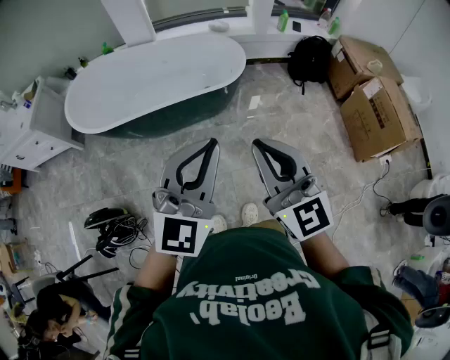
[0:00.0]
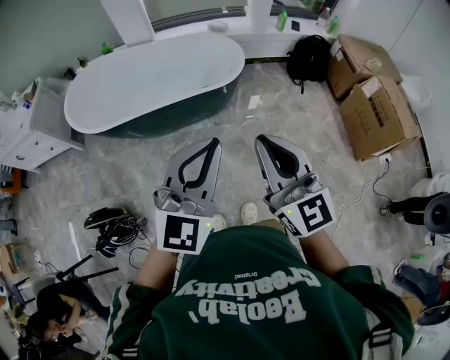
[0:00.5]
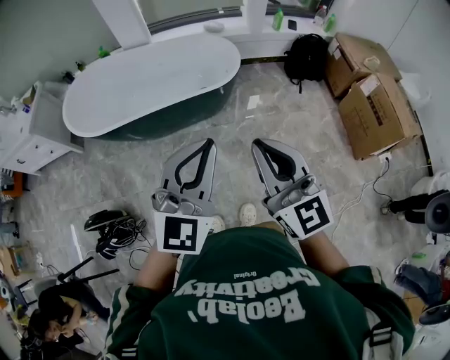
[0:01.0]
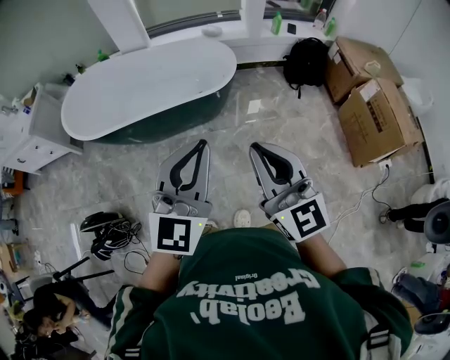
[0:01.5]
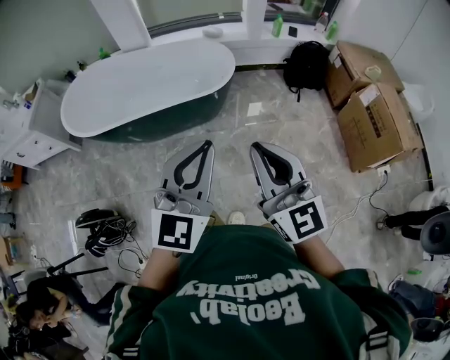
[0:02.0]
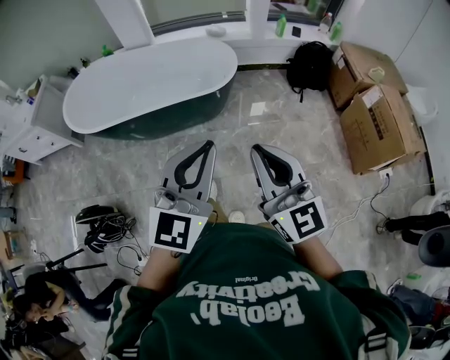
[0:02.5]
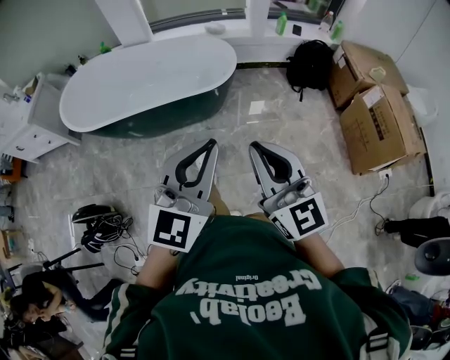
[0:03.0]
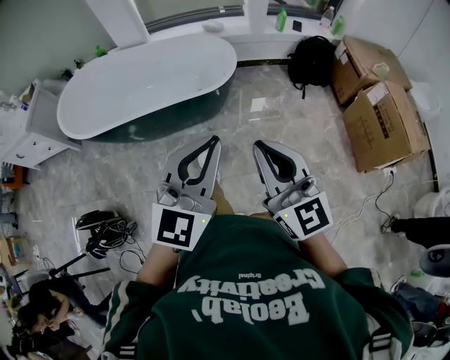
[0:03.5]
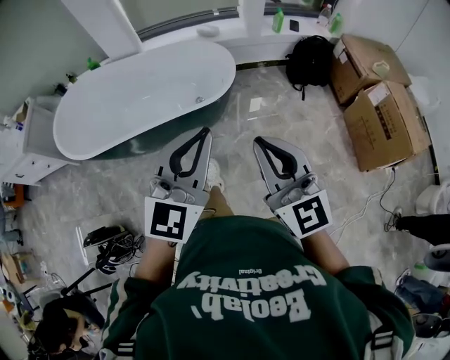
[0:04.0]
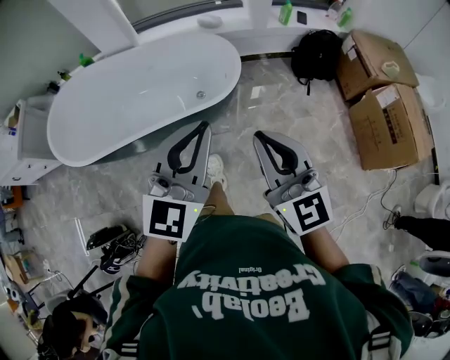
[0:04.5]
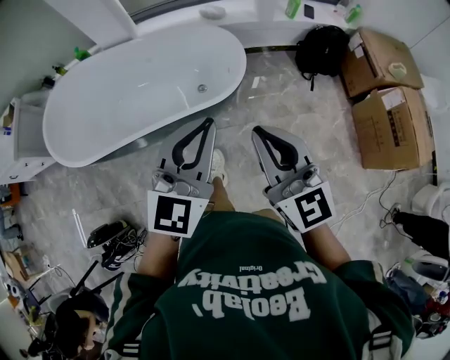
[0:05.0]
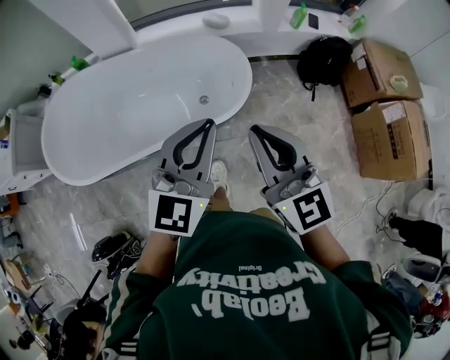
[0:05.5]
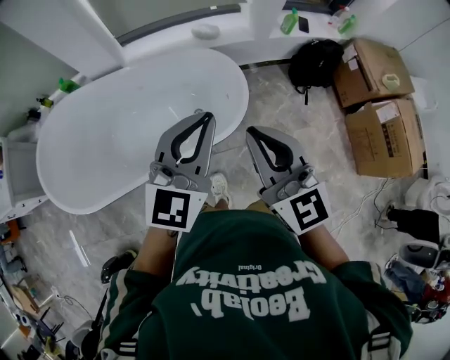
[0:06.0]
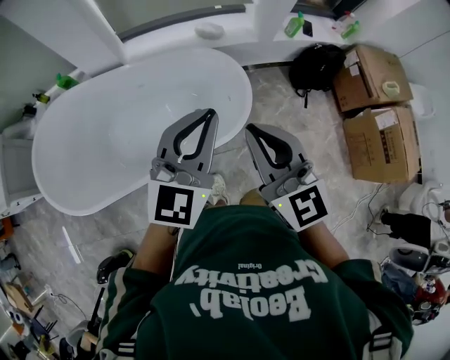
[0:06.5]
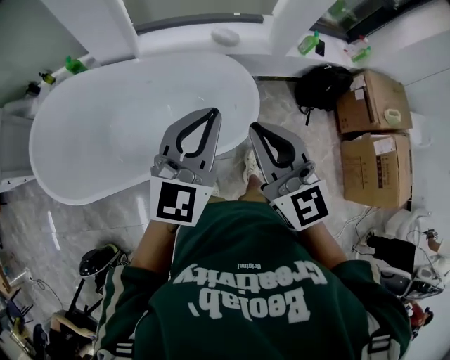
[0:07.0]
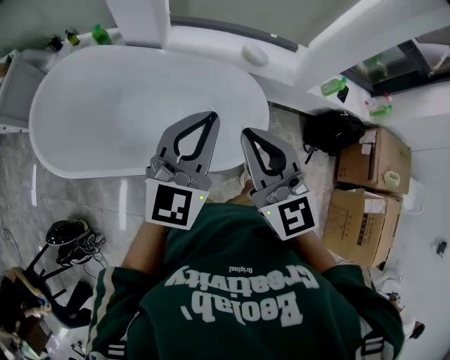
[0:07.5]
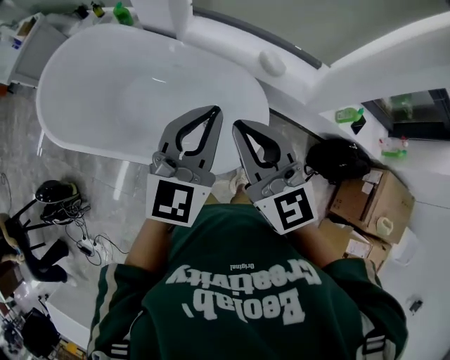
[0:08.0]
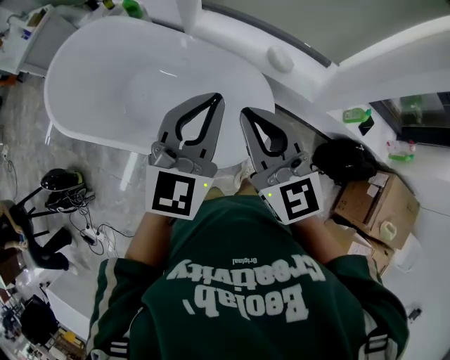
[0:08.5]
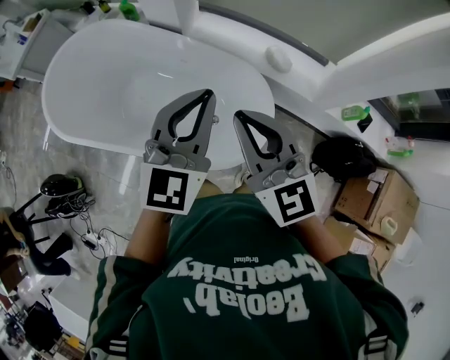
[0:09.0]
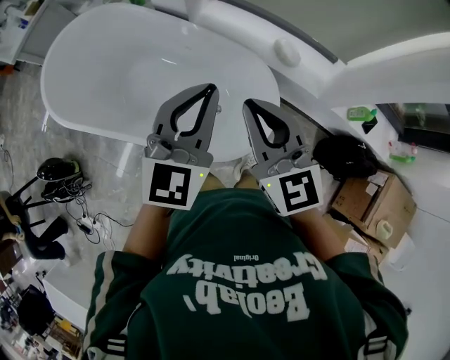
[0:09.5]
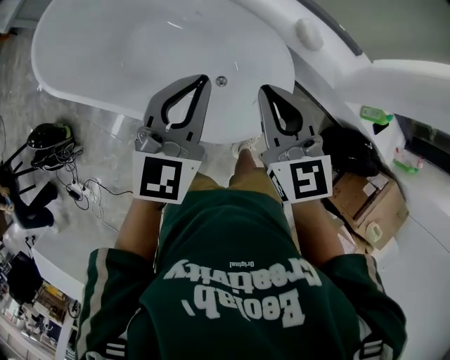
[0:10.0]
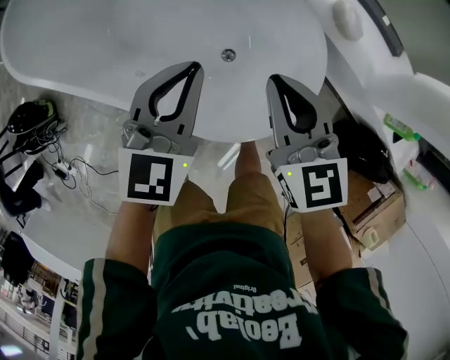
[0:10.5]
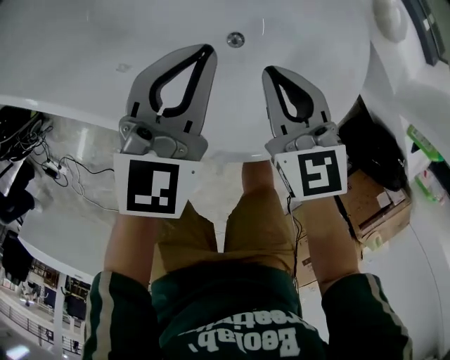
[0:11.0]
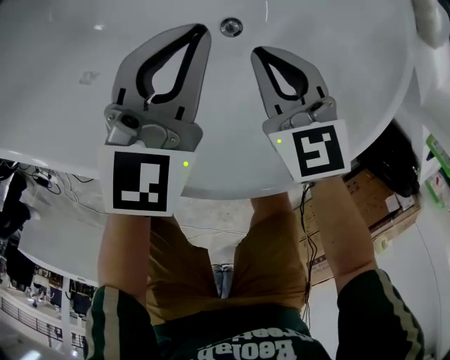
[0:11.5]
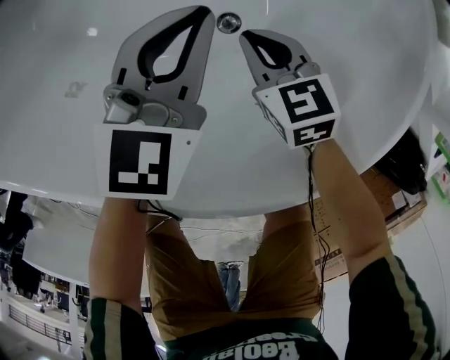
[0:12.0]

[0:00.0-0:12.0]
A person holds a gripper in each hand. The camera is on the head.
0:00.0 to 0:02.0: The grippers both shift to the right by about 10 cm.
0:02.0 to 0:04.0: The two grippers go roughly 15 cm forward.
0:04.0 to 0:06.0: The two grippers go roughly 35 cm forward.
0:06.0 to 0:08.0: The right gripper moves about 20 cm, and turns by approximately 40 degrees. The left gripper ends up some 20 cm from where it was, and changes its angle by approximately 40 degrees.
0:08.0 to 0:10.0: The right gripper moves downward and forward, about 15 cm. Meanwhile the left gripper shifts about 10 cm downward and to the left.
0:10.0 to 0:12.0: Both grippers move downward, approximately 50 cm. The right gripper rotates some 30 degrees.

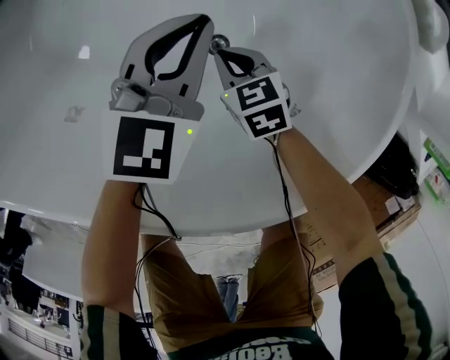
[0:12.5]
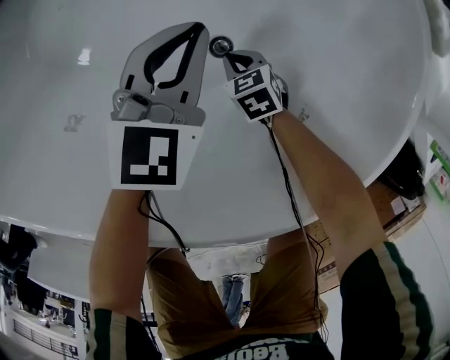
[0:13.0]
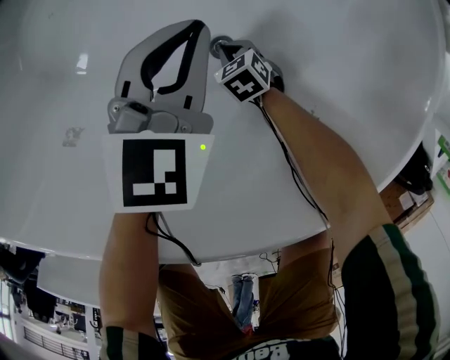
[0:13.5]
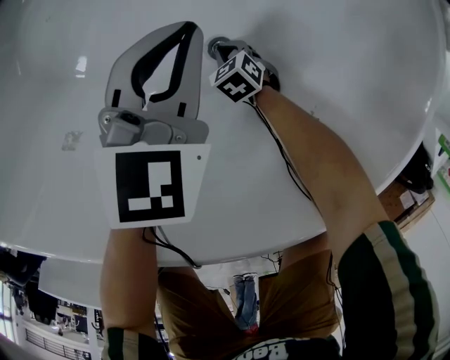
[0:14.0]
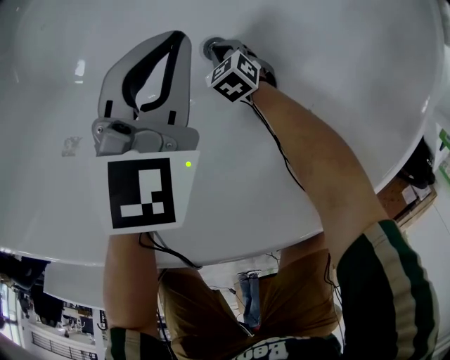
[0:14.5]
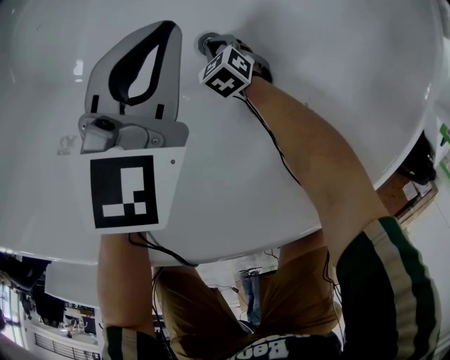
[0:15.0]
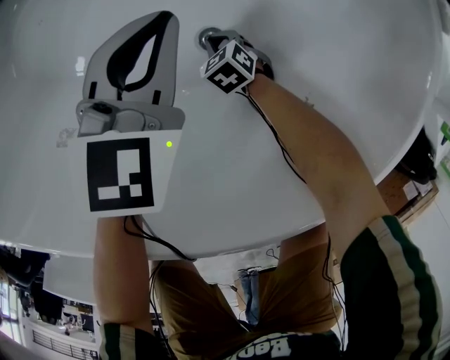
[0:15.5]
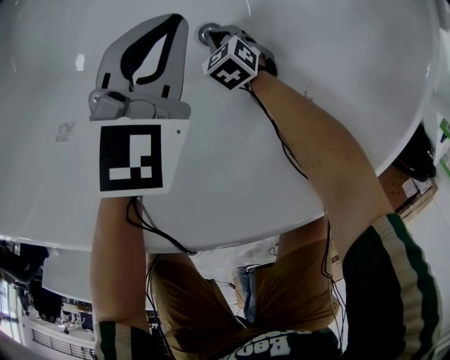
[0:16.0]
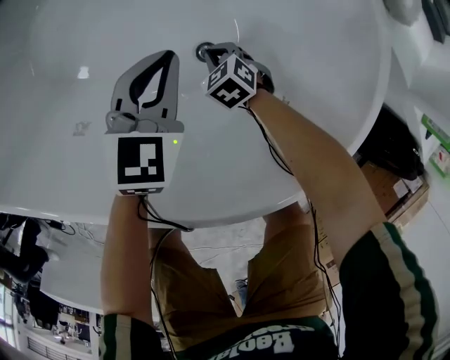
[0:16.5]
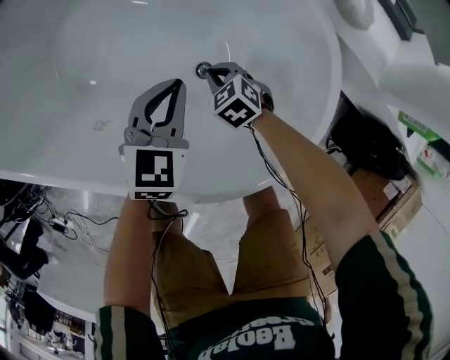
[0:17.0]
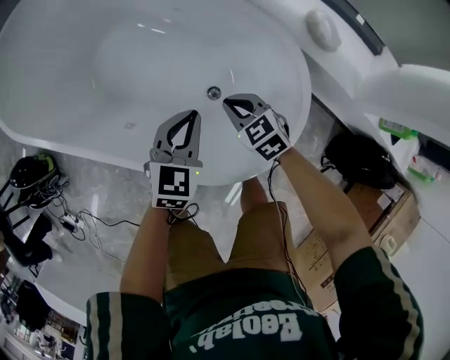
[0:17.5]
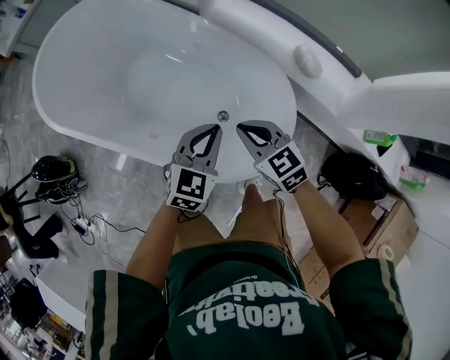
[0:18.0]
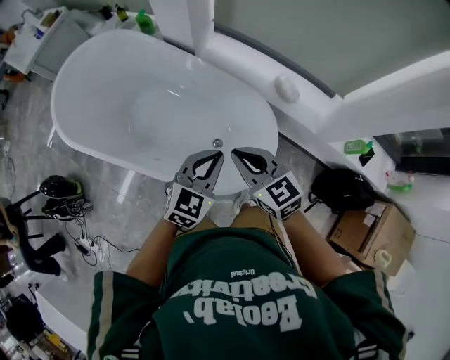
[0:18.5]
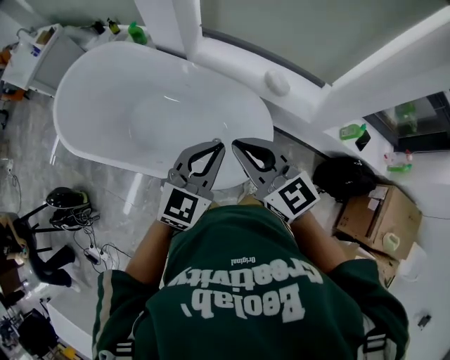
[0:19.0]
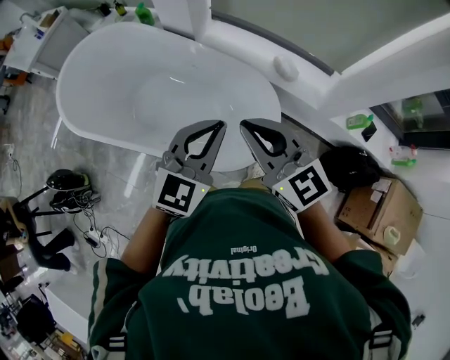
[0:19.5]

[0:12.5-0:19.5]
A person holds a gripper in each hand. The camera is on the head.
0:12.5 to 0:14.5: The right gripper goes approximately 20 cm downward.
0:14.5 to 0:16.0: The grippers move only a little.
0:16.0 to 0:17.5: The left gripper shifts approximately 25 cm upward. The right gripper moves upward, roughly 40 cm, and turns by roughly 20 degrees.
0:17.5 to 0:19.5: Both grippers travel together upward, approximately 40 cm. The left gripper changes its angle by roughly 30 degrees. Meanwhile the right gripper tips its fingers upward by about 40 degrees.

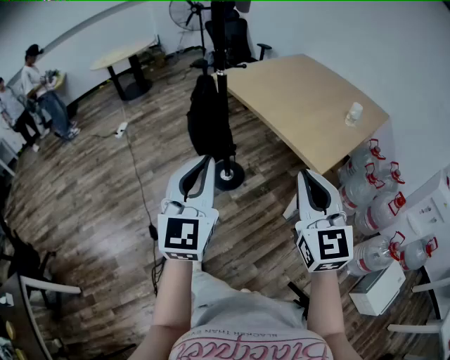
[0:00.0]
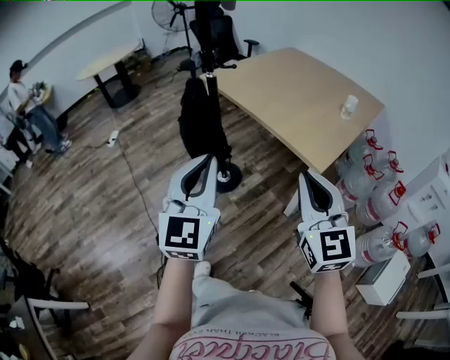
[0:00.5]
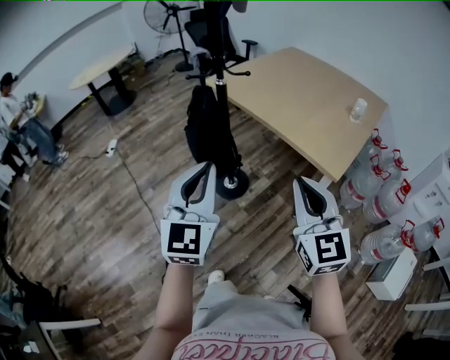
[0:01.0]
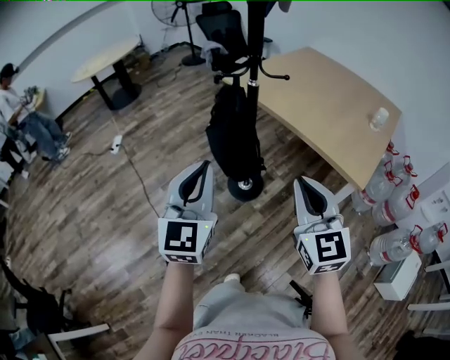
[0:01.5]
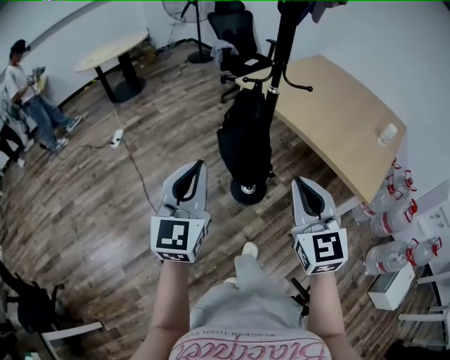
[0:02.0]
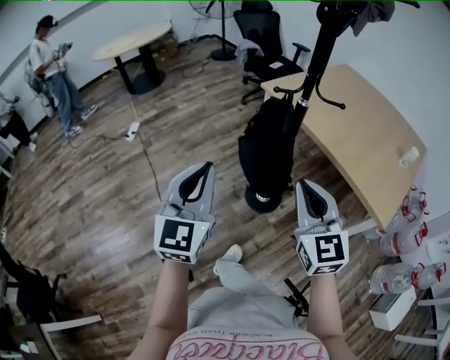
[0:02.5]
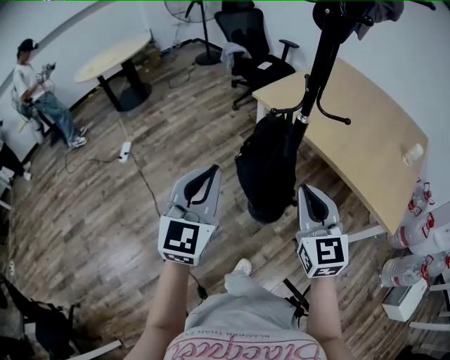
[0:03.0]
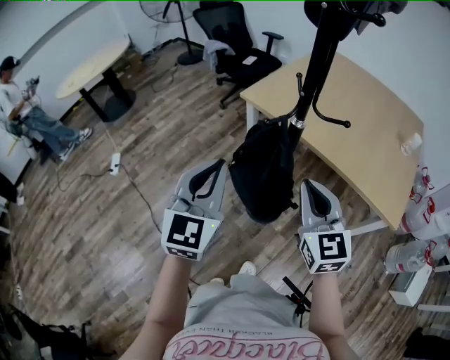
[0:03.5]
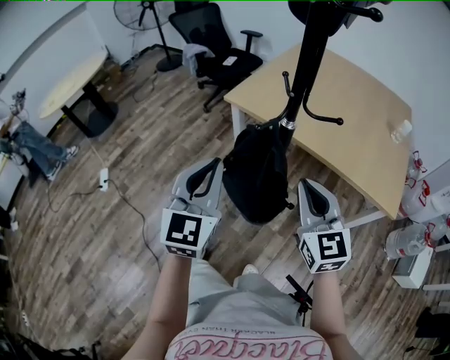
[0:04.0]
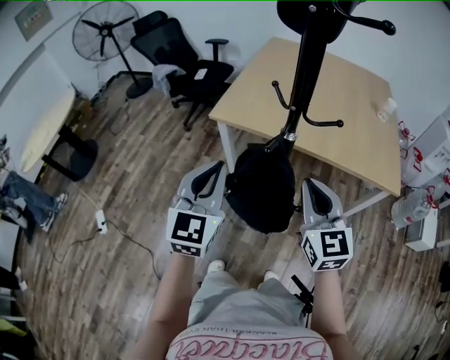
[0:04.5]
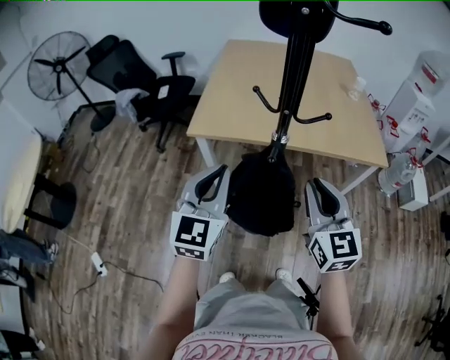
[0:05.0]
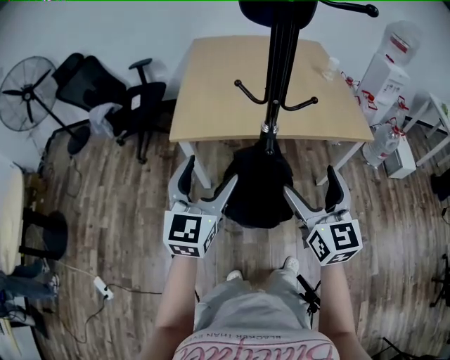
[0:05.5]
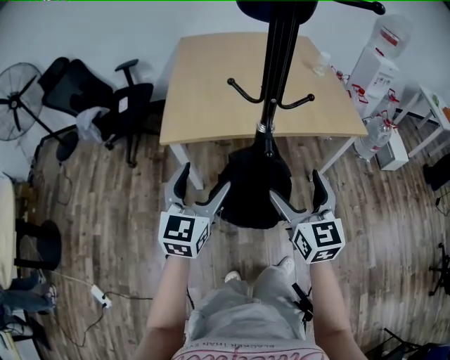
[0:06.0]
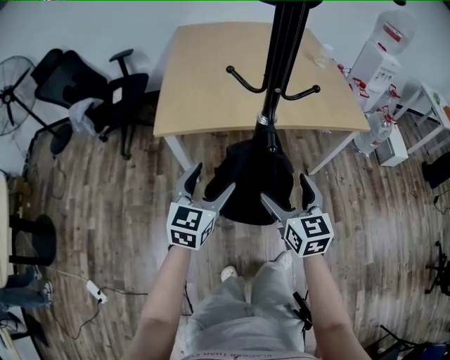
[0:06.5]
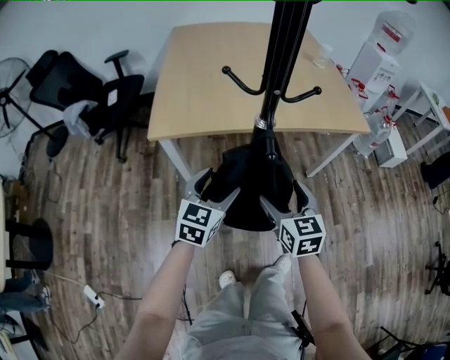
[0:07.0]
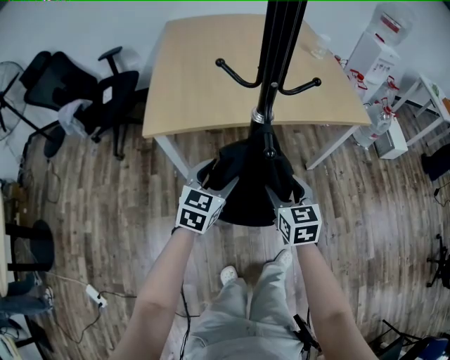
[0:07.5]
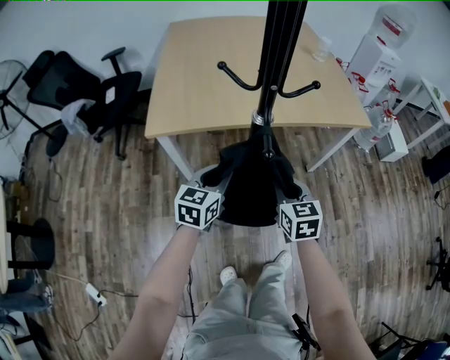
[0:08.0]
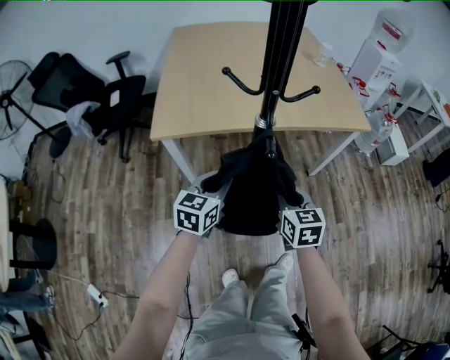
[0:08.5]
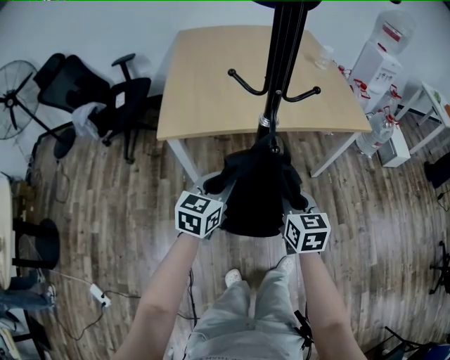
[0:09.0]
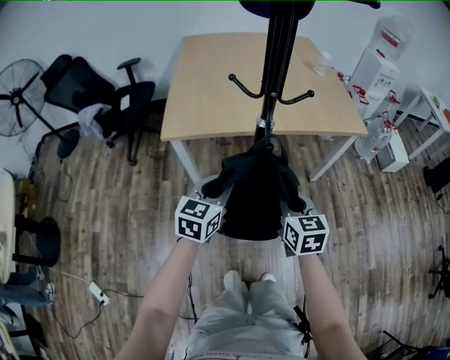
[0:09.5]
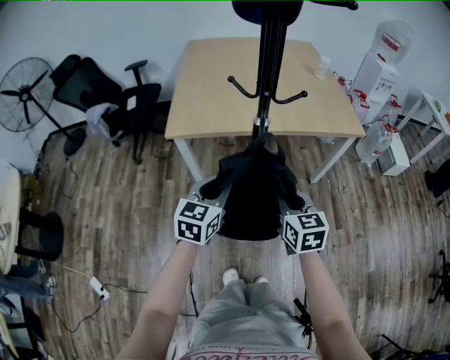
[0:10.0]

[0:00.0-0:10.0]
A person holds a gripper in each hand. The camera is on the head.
0:00.0 to 0:02.0: Both grippers travel together to the left and forward, some 30 cm.
0:02.0 to 0:04.0: The grippers both shift forward by some 25 cm. The left gripper swivels some 20 degrees.
0:04.0 to 0:06.0: The right gripper moves about 10 cm, swivels some 40 degrees, and opens its fingers, while the left gripper changes place by some 20 cm, swivels roughly 40 degrees, and opens up.
0:06.0 to 0:08.0: The right gripper goes some 15 cm downward, turns by some 20 degrees, and closes up. The left gripper moves downward and forward, approximately 15 cm, rotates roughly 20 degrees, and closes its fingers.
0:08.0 to 0:10.0: Both grippers move backward and upward, roughly 10 cm.
